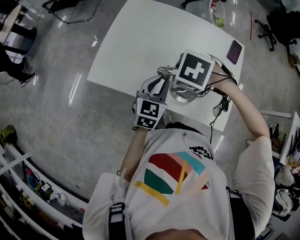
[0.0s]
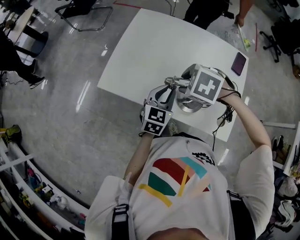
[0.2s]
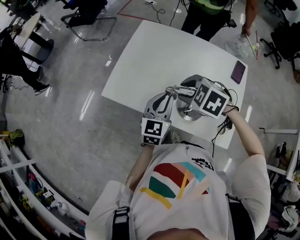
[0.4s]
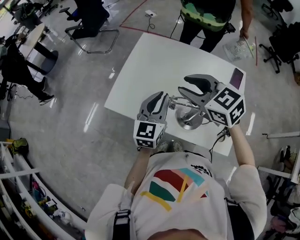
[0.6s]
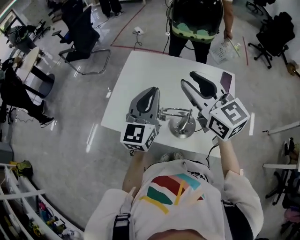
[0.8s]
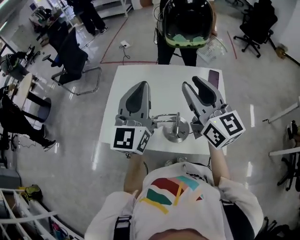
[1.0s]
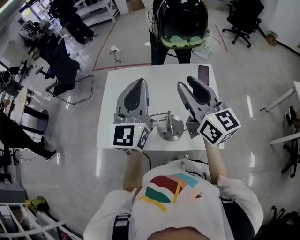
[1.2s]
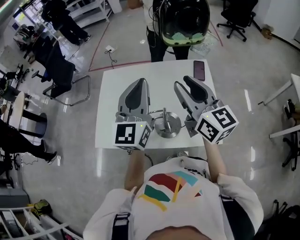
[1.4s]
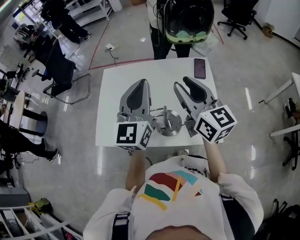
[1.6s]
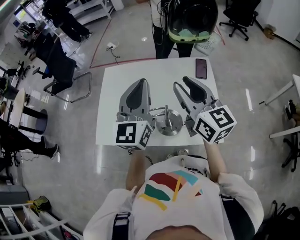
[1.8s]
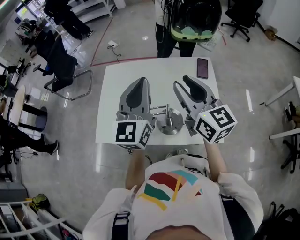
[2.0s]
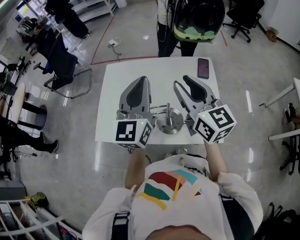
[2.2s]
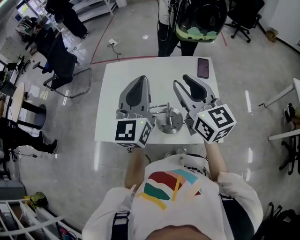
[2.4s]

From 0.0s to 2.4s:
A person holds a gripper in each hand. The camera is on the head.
From 0.0s to 1.2s: Both grippers travel together upward, about 25 cm. The right gripper tips its fingers upward by some 90 degrees. The left gripper tips its fingers upward by some 40 degrees.
From 1.2s to 2.4s: The grippers stay close to where they were, moving slightly.

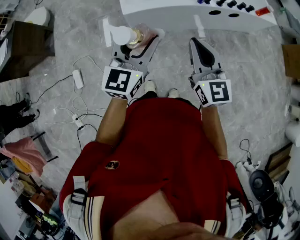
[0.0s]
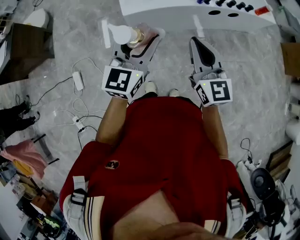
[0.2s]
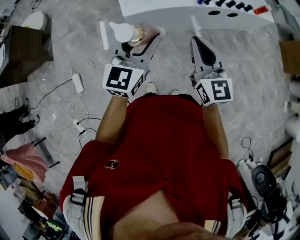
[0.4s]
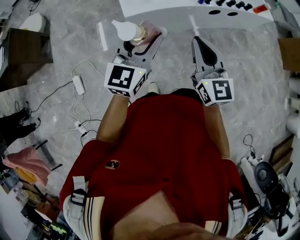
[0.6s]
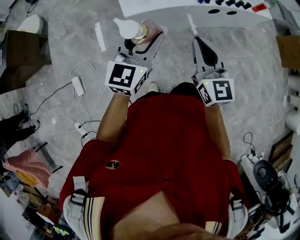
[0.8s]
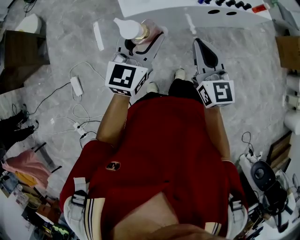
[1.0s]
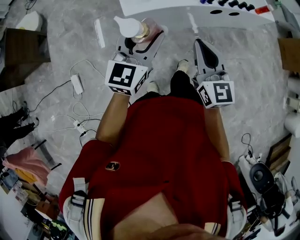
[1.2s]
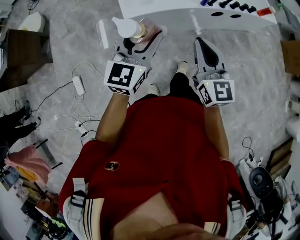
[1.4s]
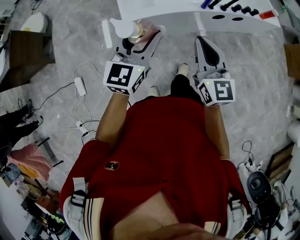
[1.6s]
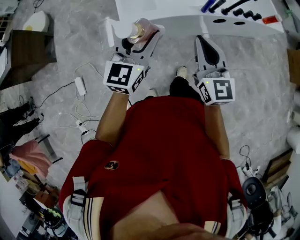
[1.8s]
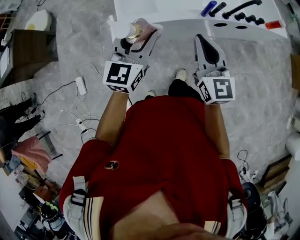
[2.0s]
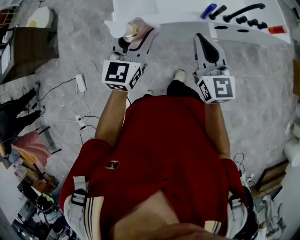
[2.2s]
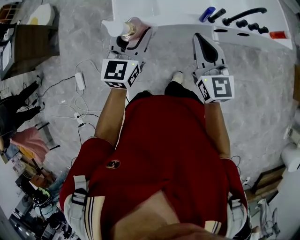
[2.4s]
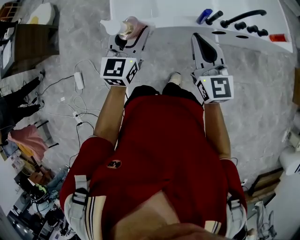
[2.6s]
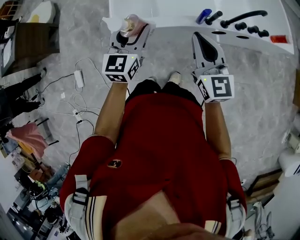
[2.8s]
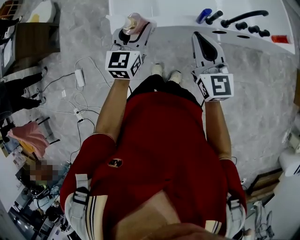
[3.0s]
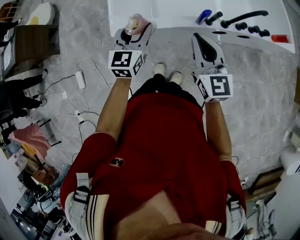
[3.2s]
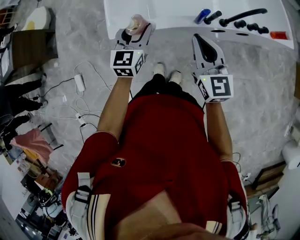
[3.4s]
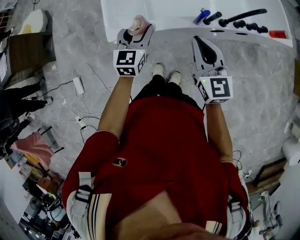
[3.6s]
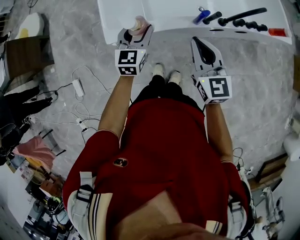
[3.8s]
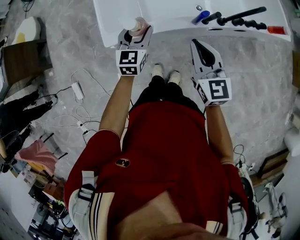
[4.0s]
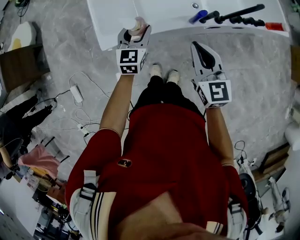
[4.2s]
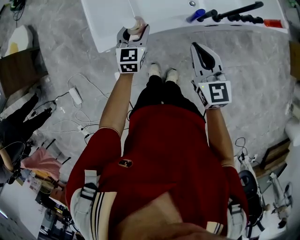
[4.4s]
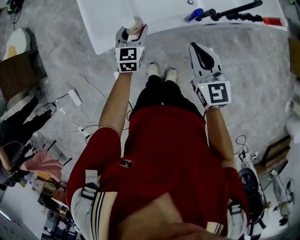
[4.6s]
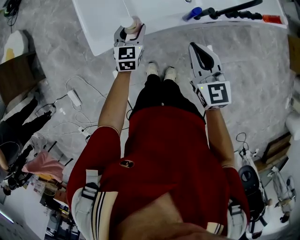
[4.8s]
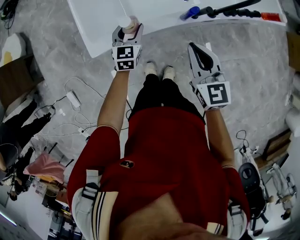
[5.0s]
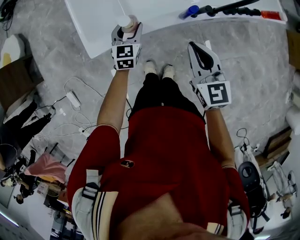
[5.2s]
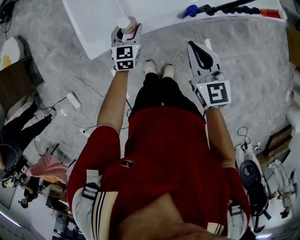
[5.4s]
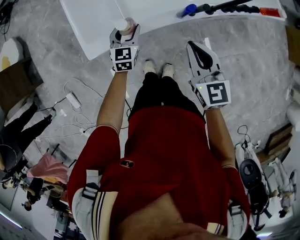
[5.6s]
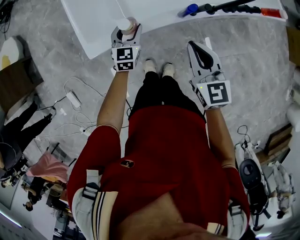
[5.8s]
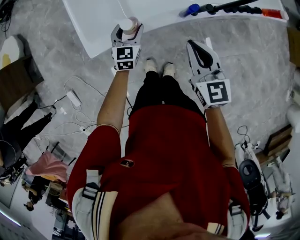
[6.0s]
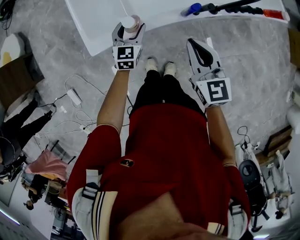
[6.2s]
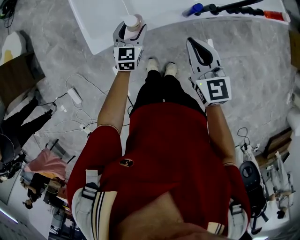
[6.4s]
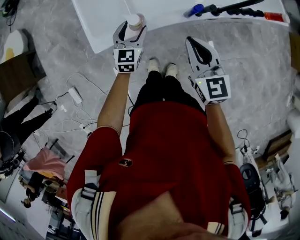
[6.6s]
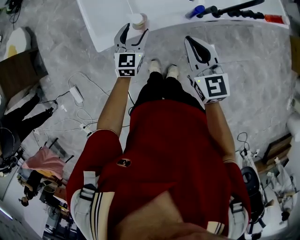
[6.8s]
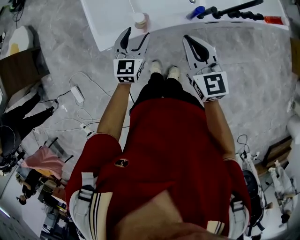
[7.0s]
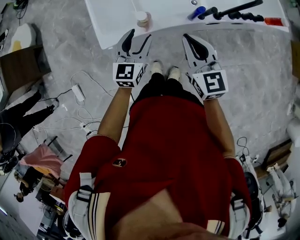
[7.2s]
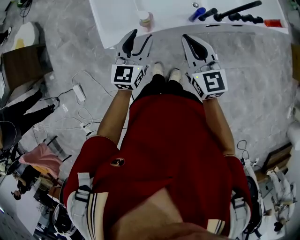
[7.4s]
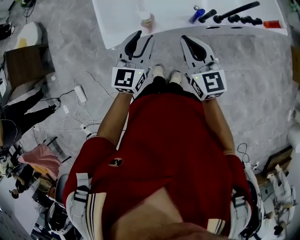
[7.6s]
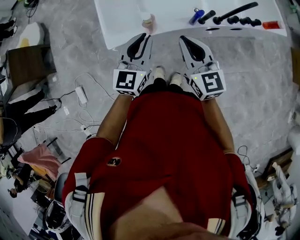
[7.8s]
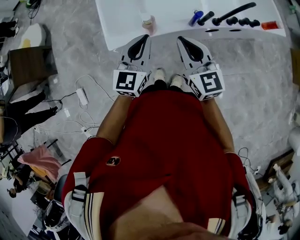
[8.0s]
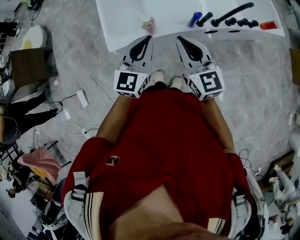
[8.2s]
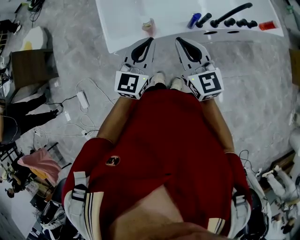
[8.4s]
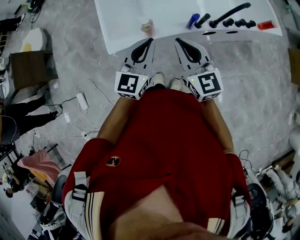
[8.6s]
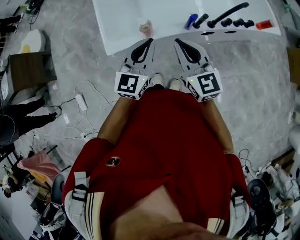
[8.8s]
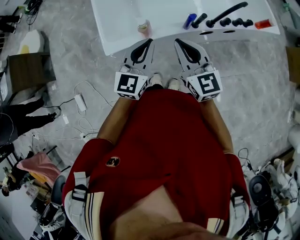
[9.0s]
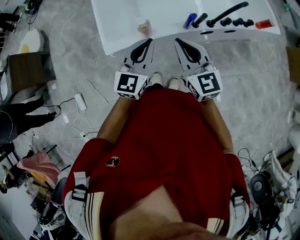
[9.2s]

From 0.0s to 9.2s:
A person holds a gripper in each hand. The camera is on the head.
From 0.0s to 1.6s: Both grippers travel together forward, approximately 10 cm.
From 1.6s to 3.0s: Both grippers travel together forward and to the right, roughly 25 cm.
From 3.0s to 4.6s: The right gripper moves downward, roughly 10 cm, while the left gripper is displaced downward and forward by about 20 cm.
From 4.6s to 6.2s: The grippers move only a little.
From 6.2s to 7.6s: The right gripper moves upward, about 5 cm; the left gripper travels upward and backward by about 25 cm, and closes.
From 7.6s to 9.2s: The left gripper shifts by approximately 5 cm, and closes.

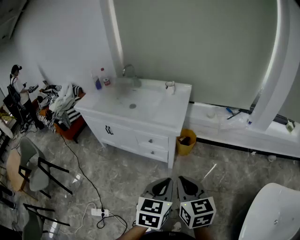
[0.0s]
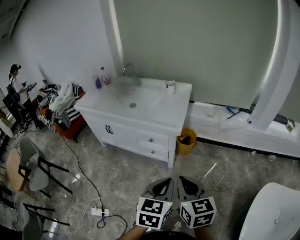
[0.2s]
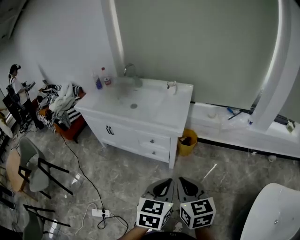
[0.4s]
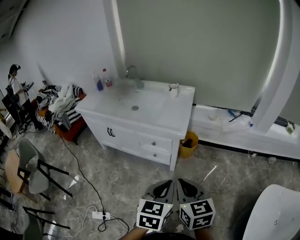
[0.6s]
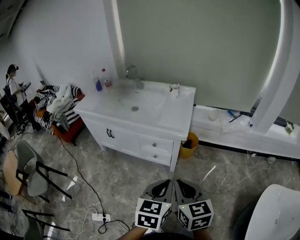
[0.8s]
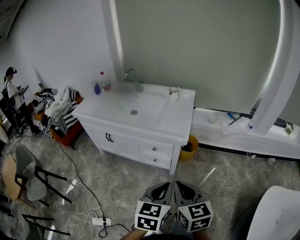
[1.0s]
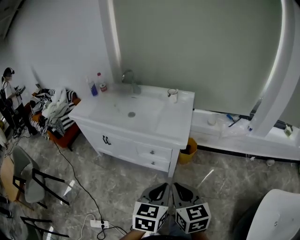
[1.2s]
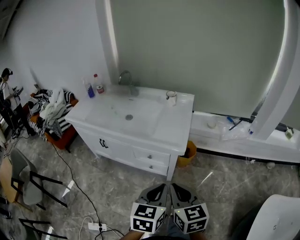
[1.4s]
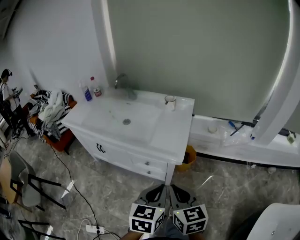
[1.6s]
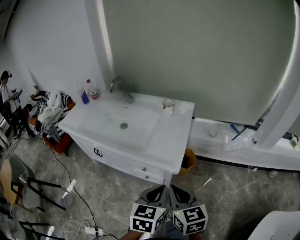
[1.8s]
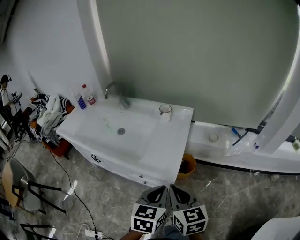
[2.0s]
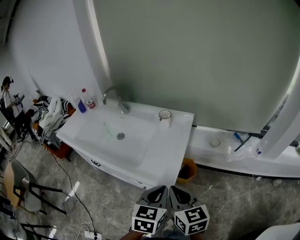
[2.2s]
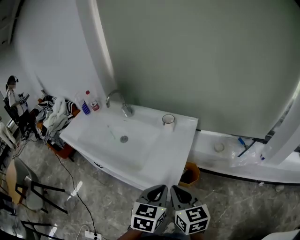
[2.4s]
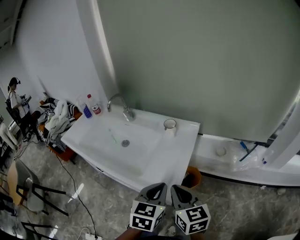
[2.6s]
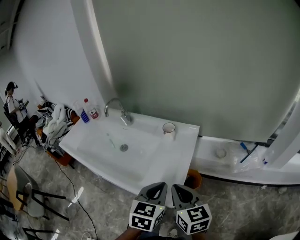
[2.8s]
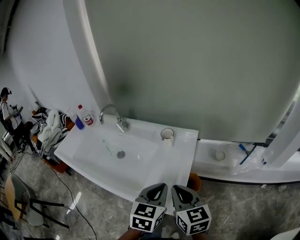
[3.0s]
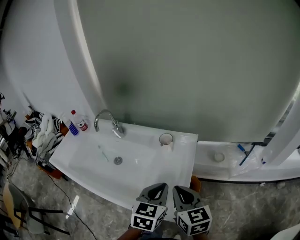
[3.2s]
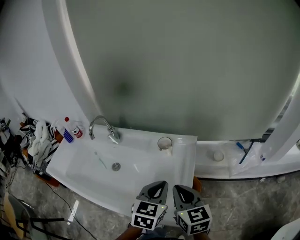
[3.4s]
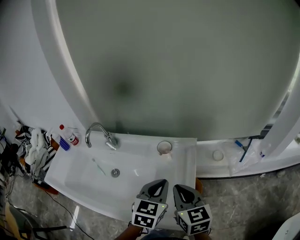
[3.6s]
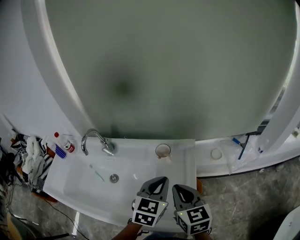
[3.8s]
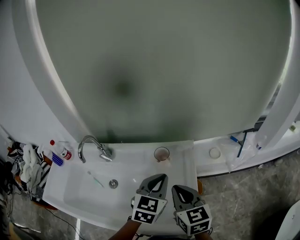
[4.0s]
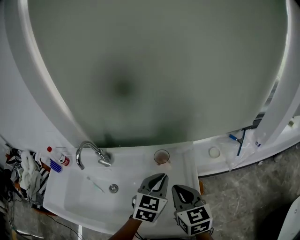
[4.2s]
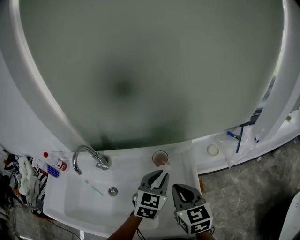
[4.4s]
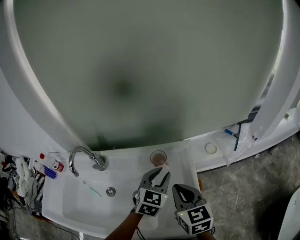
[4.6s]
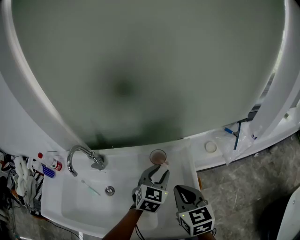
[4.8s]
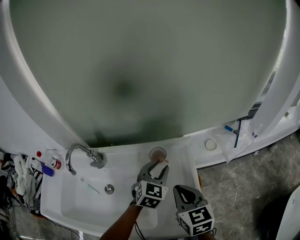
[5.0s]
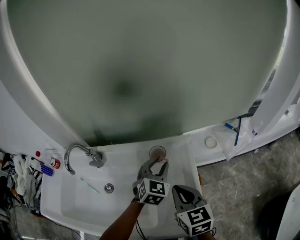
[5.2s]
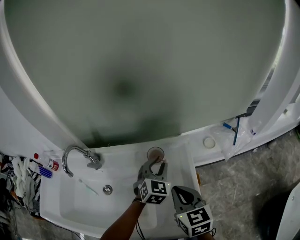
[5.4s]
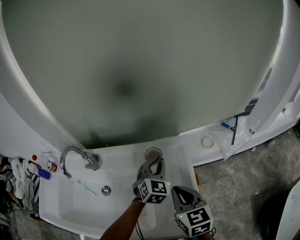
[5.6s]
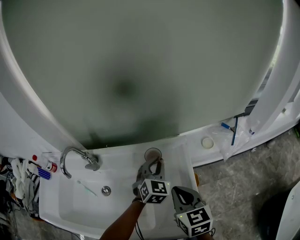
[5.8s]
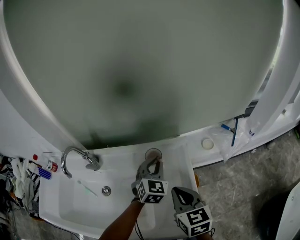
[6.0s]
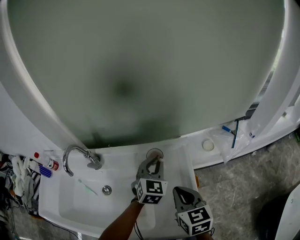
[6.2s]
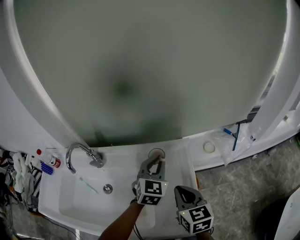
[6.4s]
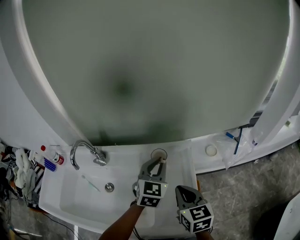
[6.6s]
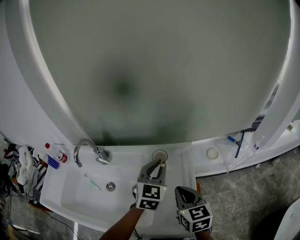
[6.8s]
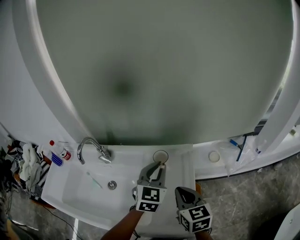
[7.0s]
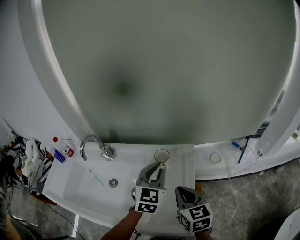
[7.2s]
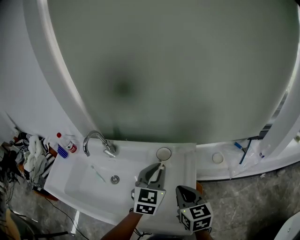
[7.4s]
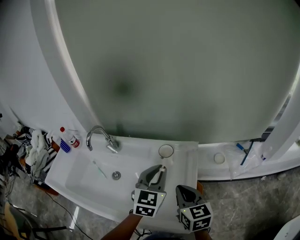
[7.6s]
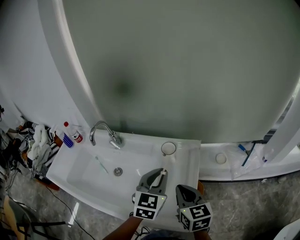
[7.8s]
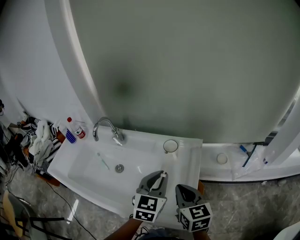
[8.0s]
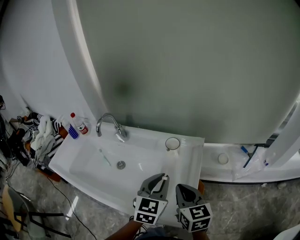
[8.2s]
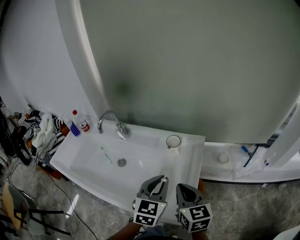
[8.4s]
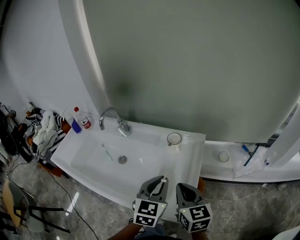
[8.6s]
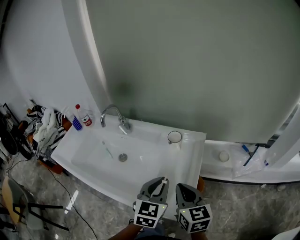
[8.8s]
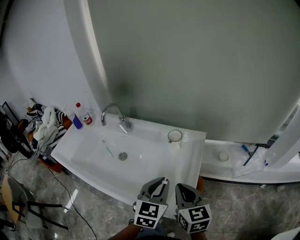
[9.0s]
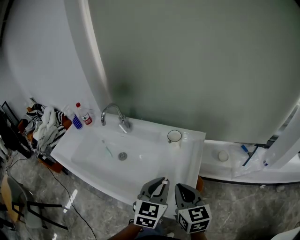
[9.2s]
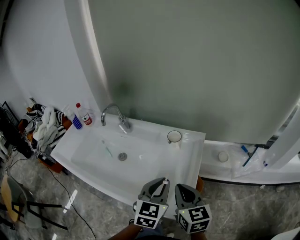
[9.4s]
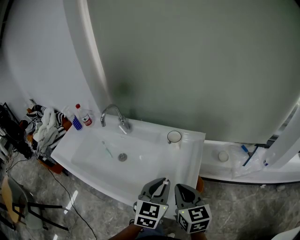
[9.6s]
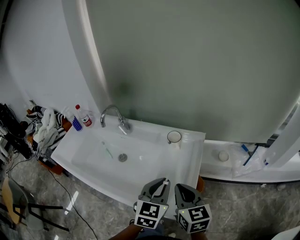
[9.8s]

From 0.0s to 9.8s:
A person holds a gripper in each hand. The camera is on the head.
From 0.0s to 1.4s: The two grippers go approximately 10 cm forward and to the left.
From 1.4s to 2.8s: Both grippers move forward, approximately 30 cm.
From 2.8s to 4.2s: The two grippers go some 20 cm forward. The left gripper swivels roughly 30 degrees. Meanwhile the right gripper swivels some 20 degrees.
From 4.2s to 5.6s: The left gripper shifts roughly 10 cm forward and downward.
From 5.6s to 7.0s: The left gripper shifts some 10 cm upward and backward.
From 7.0s to 8.4s: The left gripper heads backward, covering approximately 15 cm. Meanwhile the right gripper is displaced backward by some 5 cm.
From 8.4s to 9.8s: There are only small adjustments of the grippers.

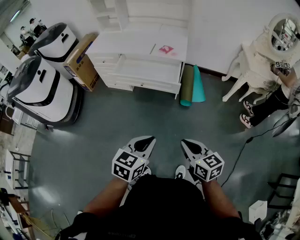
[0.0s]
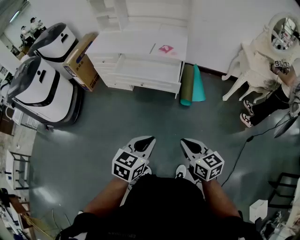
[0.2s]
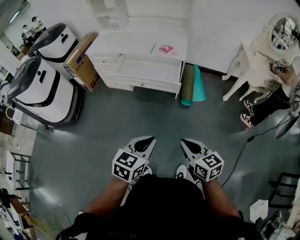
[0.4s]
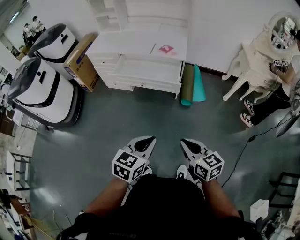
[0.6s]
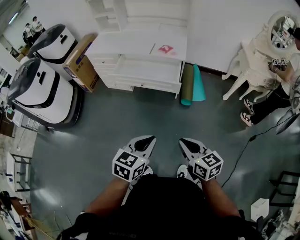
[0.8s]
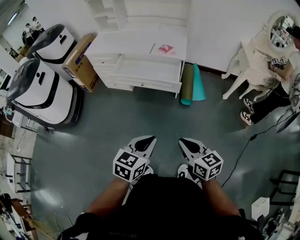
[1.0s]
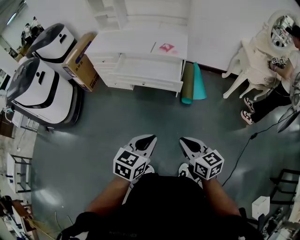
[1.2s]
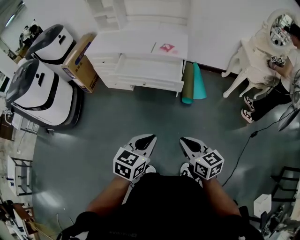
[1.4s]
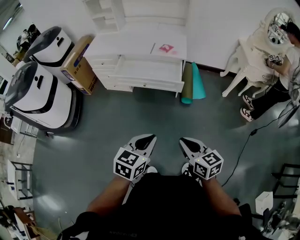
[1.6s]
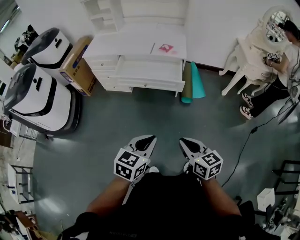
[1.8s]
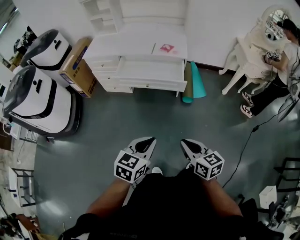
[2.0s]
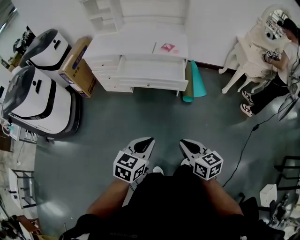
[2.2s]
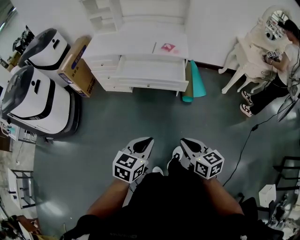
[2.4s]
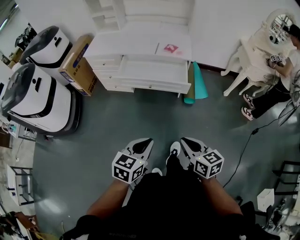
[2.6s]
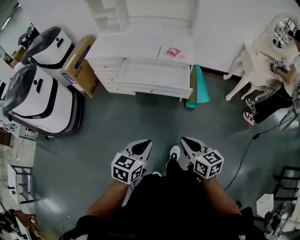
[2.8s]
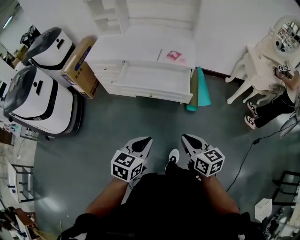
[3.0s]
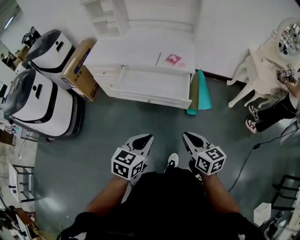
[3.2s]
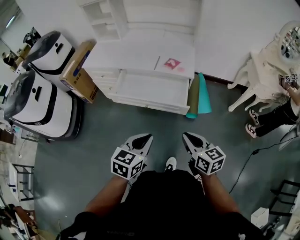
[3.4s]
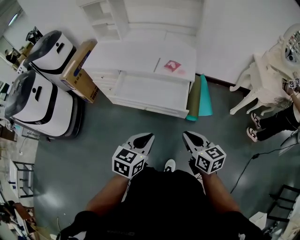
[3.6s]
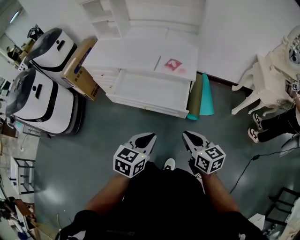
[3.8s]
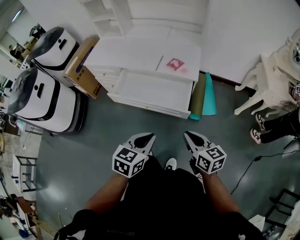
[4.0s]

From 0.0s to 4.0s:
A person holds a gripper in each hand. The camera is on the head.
From 0.0s to 1.4s: There are only small adjustments of the grippers.
From 1.4s to 2.6s: The two grippers go about 10 cm to the left.
From 2.6s to 4.0s: The two grippers go some 25 cm forward and to the right.
